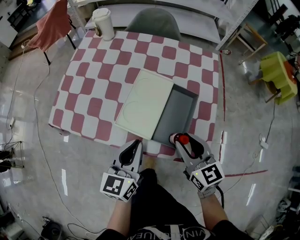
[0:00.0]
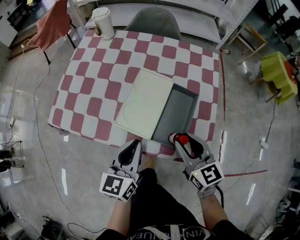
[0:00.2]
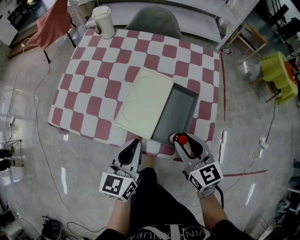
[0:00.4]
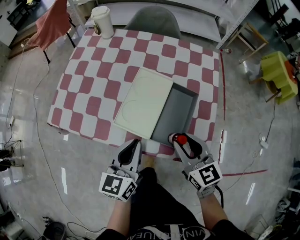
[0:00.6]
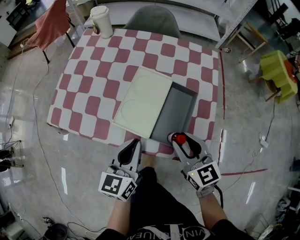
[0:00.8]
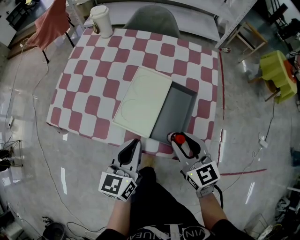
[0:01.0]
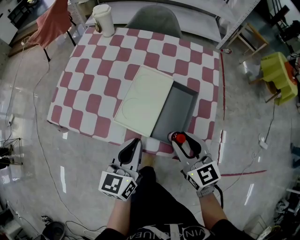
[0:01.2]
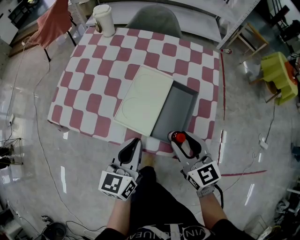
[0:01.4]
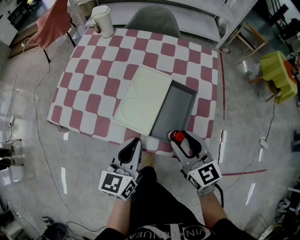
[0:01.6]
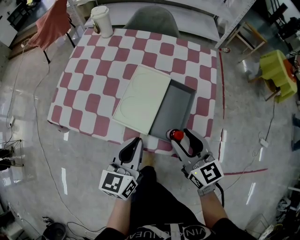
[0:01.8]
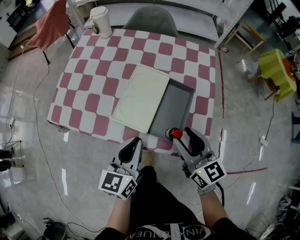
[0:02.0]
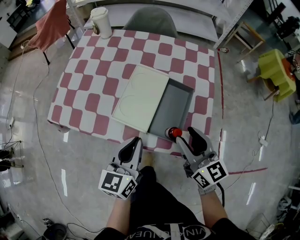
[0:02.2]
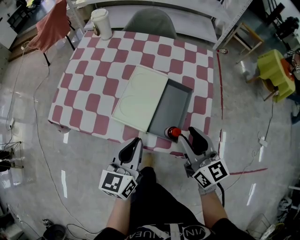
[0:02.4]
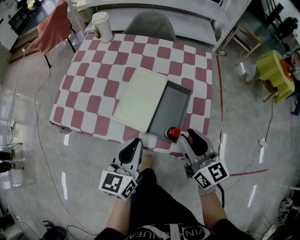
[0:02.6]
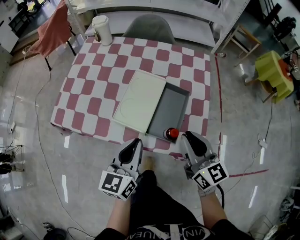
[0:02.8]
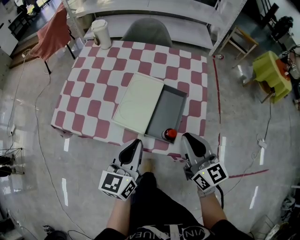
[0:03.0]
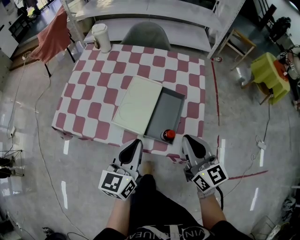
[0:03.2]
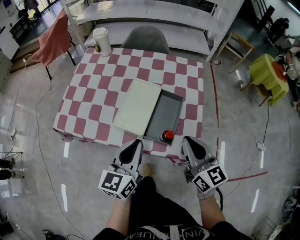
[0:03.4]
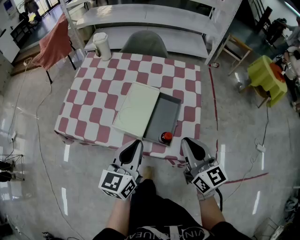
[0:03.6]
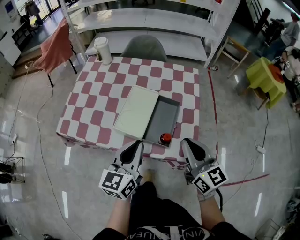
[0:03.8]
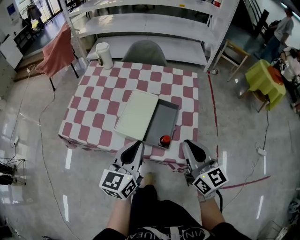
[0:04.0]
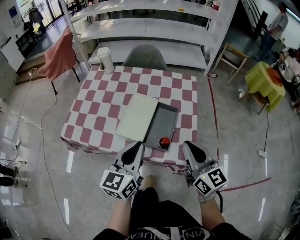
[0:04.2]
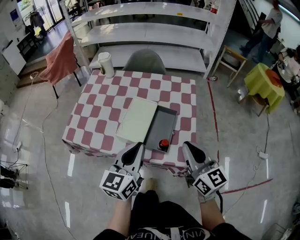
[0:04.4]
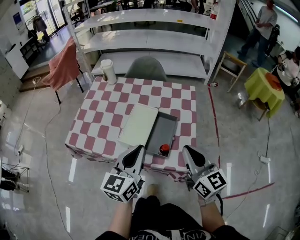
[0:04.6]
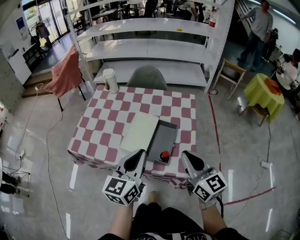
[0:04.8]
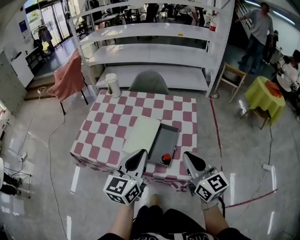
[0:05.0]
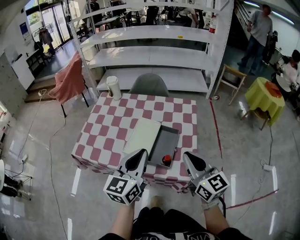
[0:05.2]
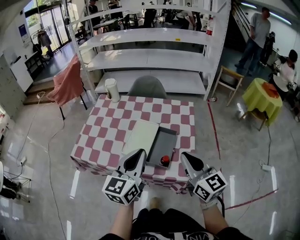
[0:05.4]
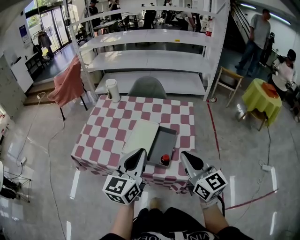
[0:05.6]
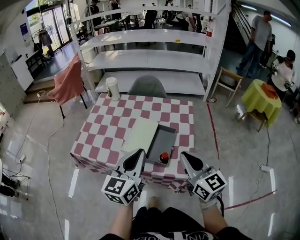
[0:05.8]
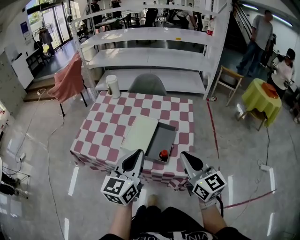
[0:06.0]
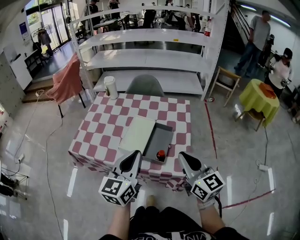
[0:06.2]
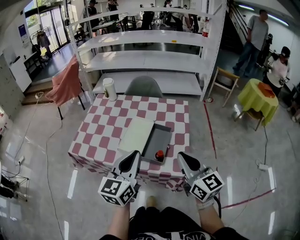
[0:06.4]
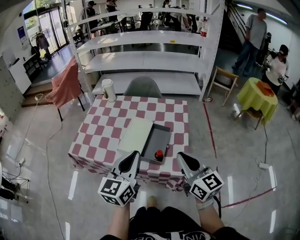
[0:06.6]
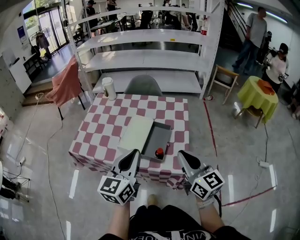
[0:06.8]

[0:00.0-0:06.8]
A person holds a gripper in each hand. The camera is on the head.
0:00.0 to 0:01.4: Both grippers stay about where they are.
0:01.4 to 0:02.8: The right gripper moves upward, some 5 cm, and closes its fingers.
0:02.8 to 0:04.0: Both grippers travel together upward, roughly 5 cm.
0:04.0 to 0:05.4: The right gripper heads upward, covering some 5 cm; the left gripper shifts approximately 10 cm upward.
0:05.4 to 0:06.8: There are only small adjustments of the grippers.

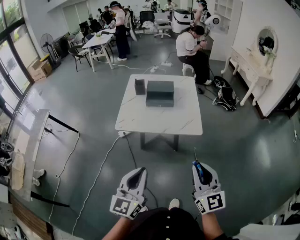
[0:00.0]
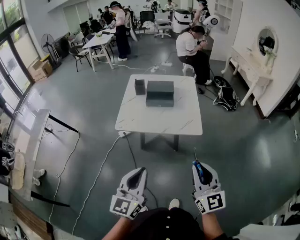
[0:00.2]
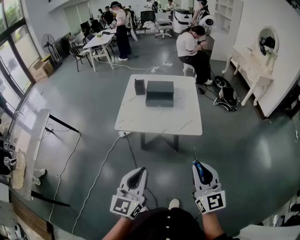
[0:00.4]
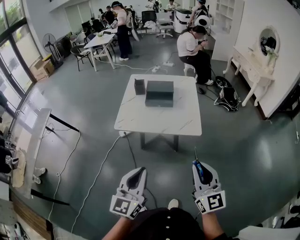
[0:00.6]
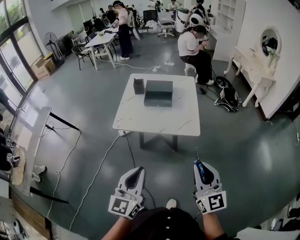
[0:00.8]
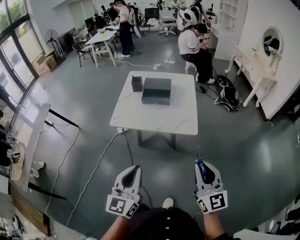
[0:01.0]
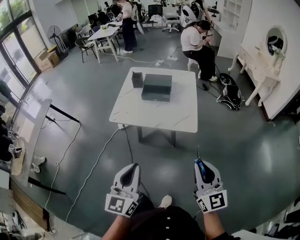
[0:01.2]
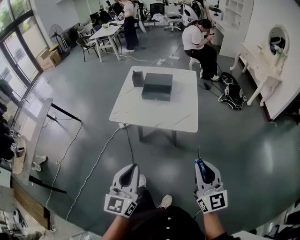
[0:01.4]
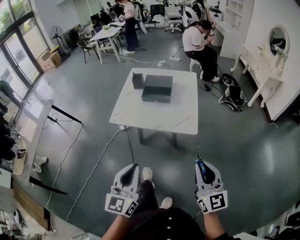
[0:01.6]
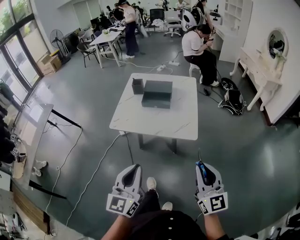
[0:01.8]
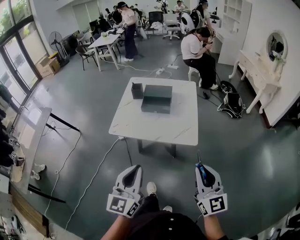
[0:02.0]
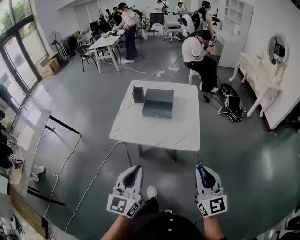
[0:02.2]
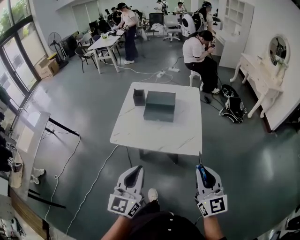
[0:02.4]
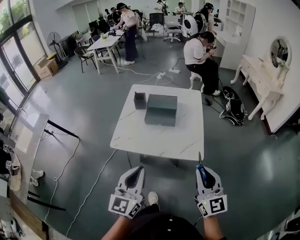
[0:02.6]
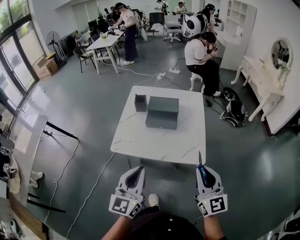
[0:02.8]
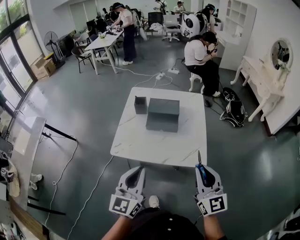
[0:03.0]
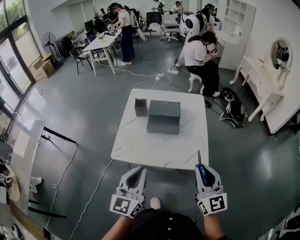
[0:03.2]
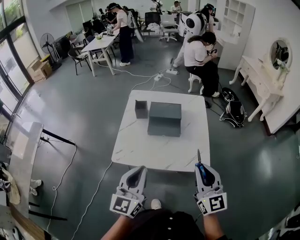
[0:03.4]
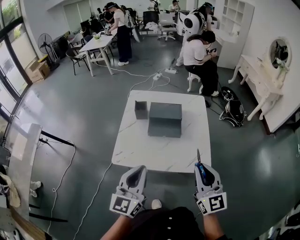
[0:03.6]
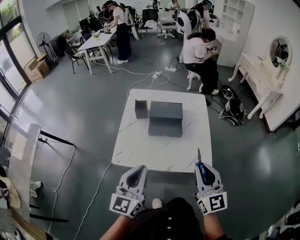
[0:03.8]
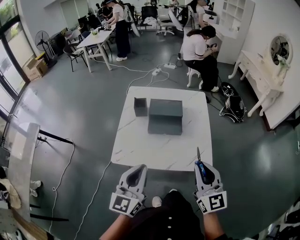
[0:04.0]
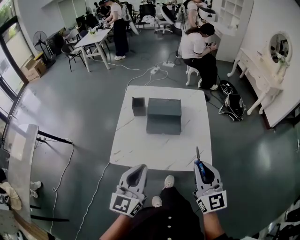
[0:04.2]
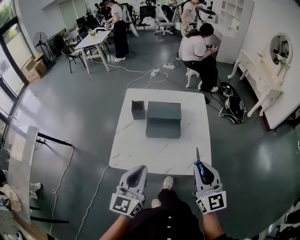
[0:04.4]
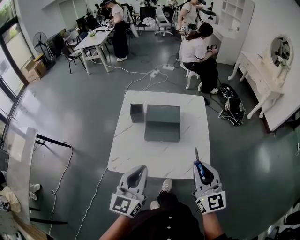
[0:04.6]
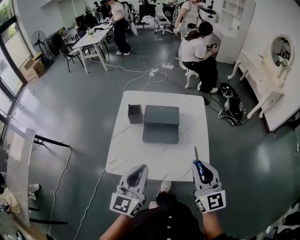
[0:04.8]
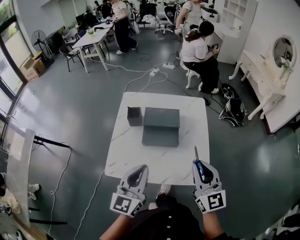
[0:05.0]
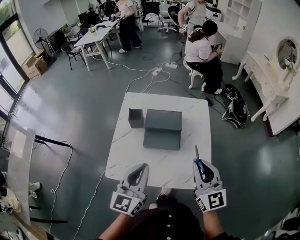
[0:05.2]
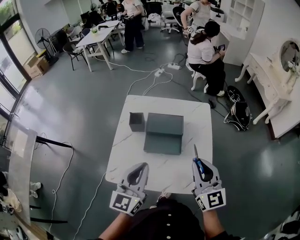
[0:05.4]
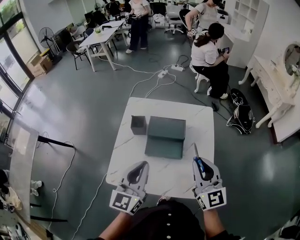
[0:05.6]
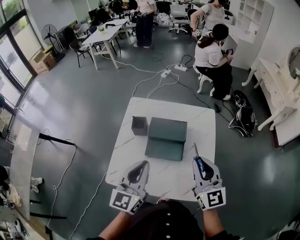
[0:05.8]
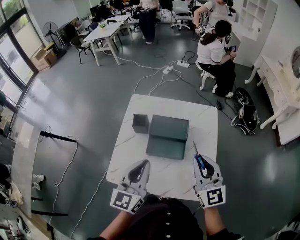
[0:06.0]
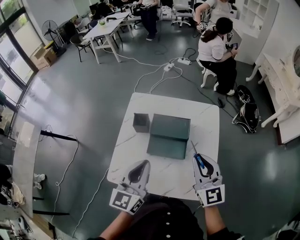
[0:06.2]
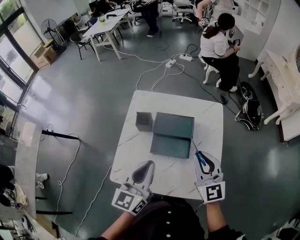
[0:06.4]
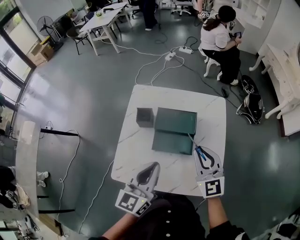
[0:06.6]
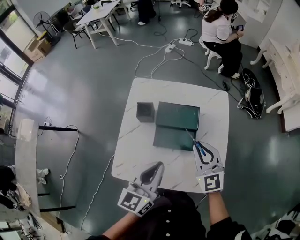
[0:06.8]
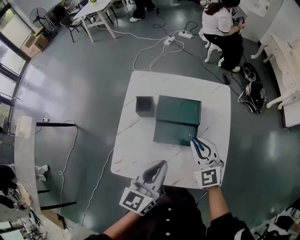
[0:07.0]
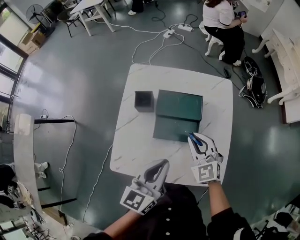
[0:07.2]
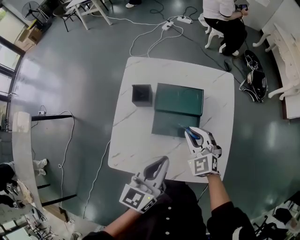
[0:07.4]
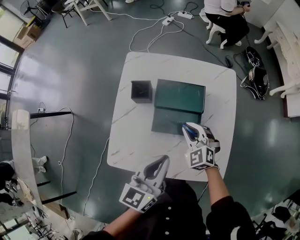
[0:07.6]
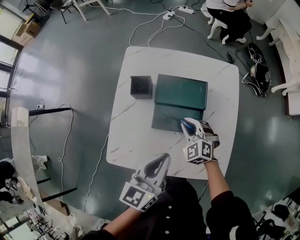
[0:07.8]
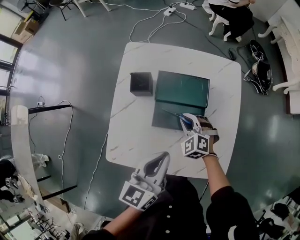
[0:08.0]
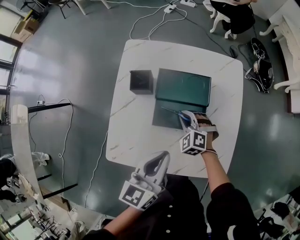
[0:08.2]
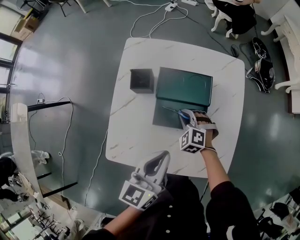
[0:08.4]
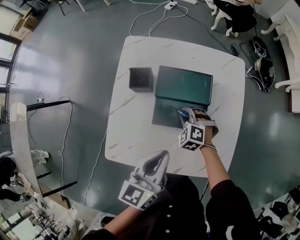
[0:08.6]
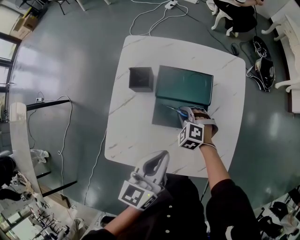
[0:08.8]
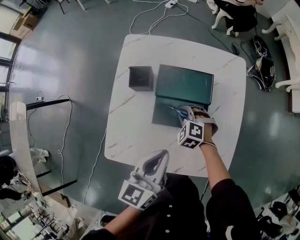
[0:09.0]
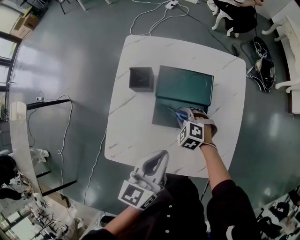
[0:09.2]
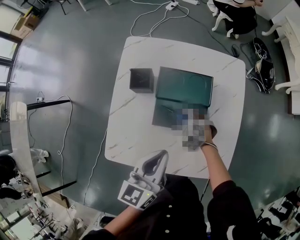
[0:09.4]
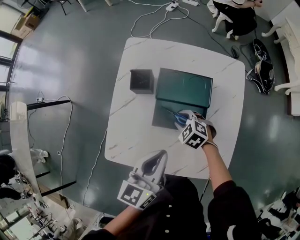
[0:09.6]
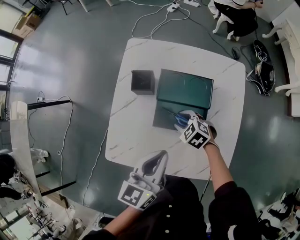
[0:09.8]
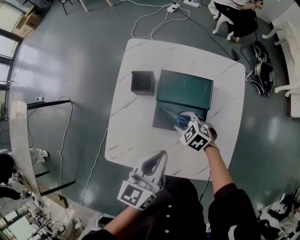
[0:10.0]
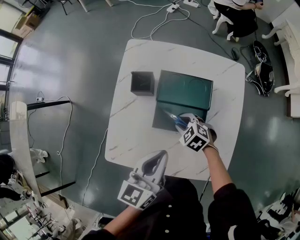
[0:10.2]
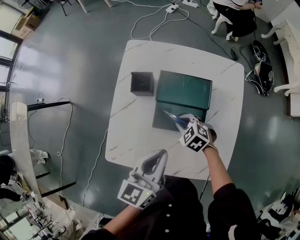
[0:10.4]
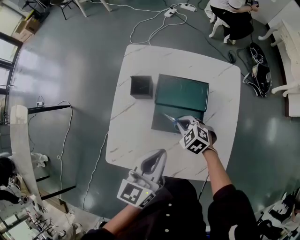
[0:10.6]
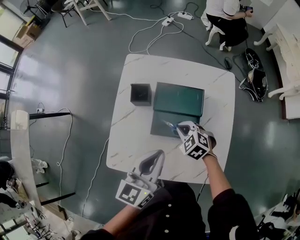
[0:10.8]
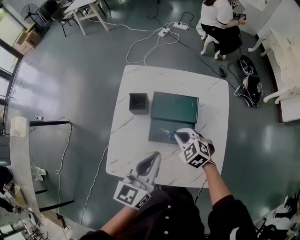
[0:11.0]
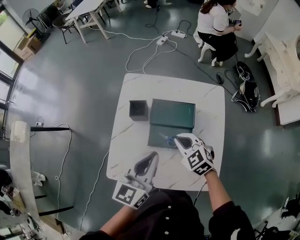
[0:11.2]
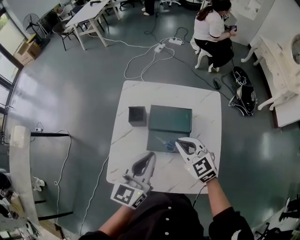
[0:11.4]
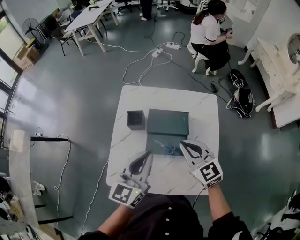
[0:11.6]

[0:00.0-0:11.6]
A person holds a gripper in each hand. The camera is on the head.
0:00.0 to 0:01.4: Both grippers travel together to the right, about 10 cm.
0:01.4 to 0:02.8: The grippers both shift forward by roughly 20 cm.
0:02.8 to 0:04.4: The right gripper travels forward and to the left by approximately 15 cm, while the left gripper travels forward by some 15 cm.
0:04.4 to 0:05.8: The two grippers go some 20 cm forward.
0:05.8 to 0:07.2: The right gripper goes approximately 20 cm downward, forward and to the left, and rotates about 30 degrees; the left gripper heads downward, covering approximately 10 cm.
0:07.2 to 0:08.8: The right gripper travels downward by roughly 20 cm, and tips its fingers downward by approximately 30 degrees. Meanwhile the left gripper moves downward, approximately 5 cm.
0:08.8 to 0:10.2: The right gripper swivels approximately 30 degrees, and opens its fingers.
0:10.2 to 0:11.6: The right gripper heads upward, covering about 30 cm, angles its fingers upward, by approximately 40 degrees, and closes its fingers; the left gripper heads upward, covering some 15 cm.

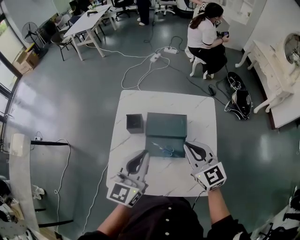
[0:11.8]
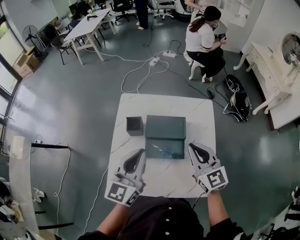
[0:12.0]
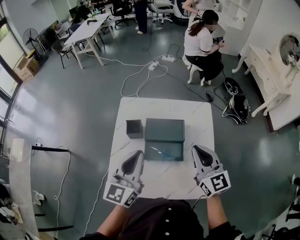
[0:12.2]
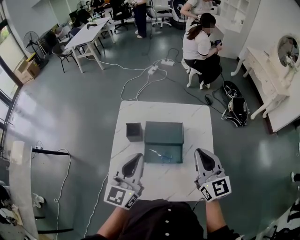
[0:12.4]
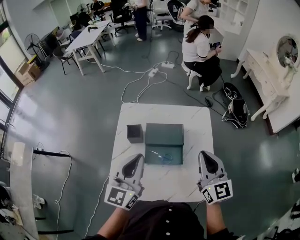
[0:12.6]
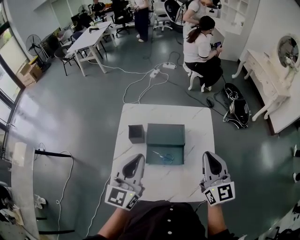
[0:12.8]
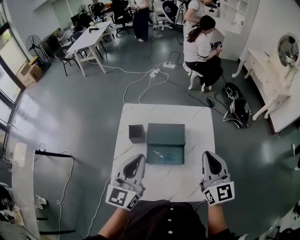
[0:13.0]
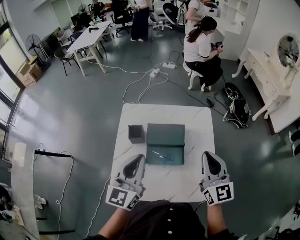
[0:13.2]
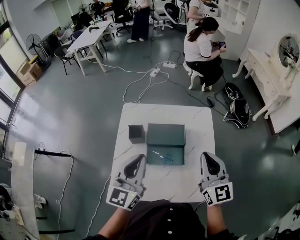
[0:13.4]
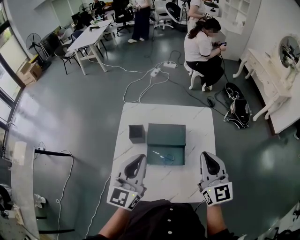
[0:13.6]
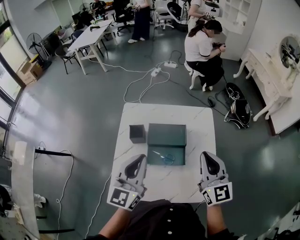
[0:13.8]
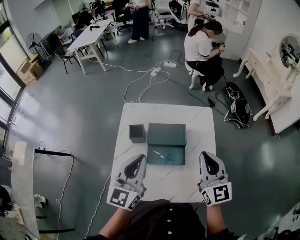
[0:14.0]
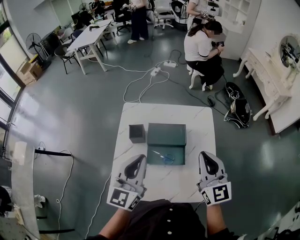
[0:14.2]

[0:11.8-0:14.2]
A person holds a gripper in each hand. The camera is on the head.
0:11.8 to 0:13.0: The right gripper shifts approximately 10 cm to the right, upward and backward, and changes its angle by some 20 degrees.
0:13.0 to 0:14.2: There are only small adjustments of the grippers.

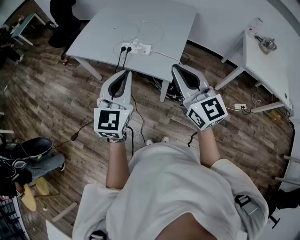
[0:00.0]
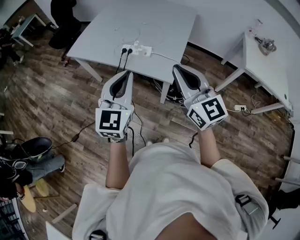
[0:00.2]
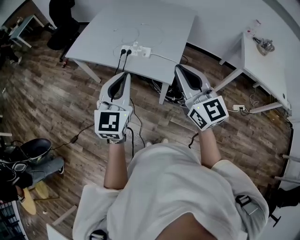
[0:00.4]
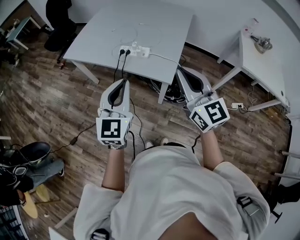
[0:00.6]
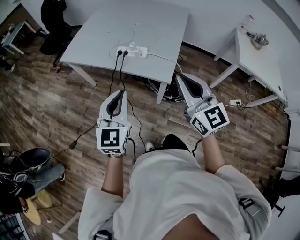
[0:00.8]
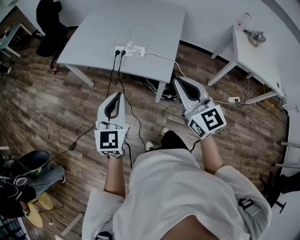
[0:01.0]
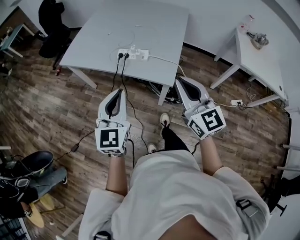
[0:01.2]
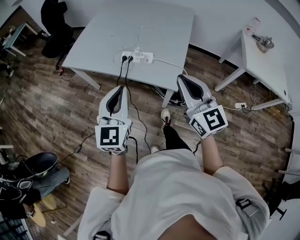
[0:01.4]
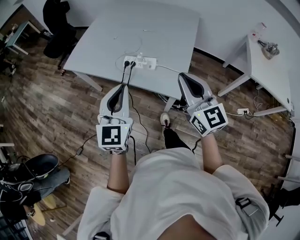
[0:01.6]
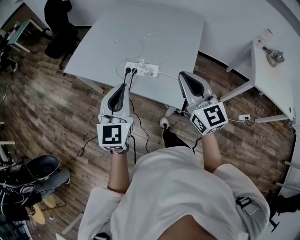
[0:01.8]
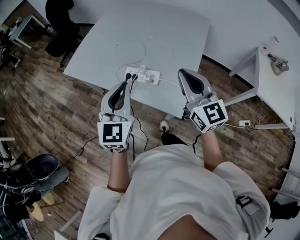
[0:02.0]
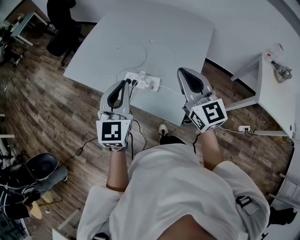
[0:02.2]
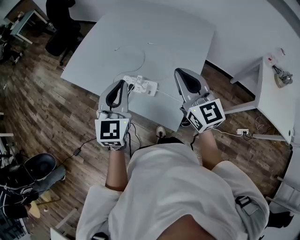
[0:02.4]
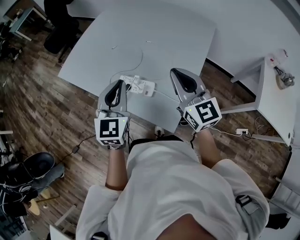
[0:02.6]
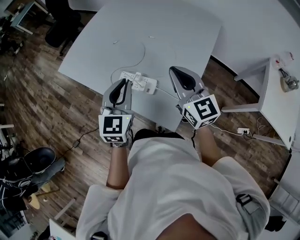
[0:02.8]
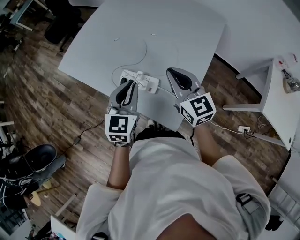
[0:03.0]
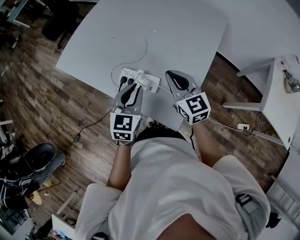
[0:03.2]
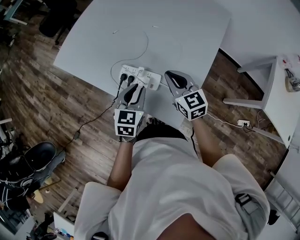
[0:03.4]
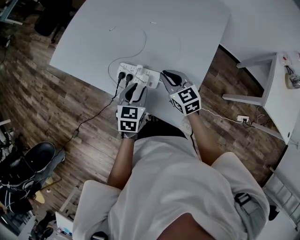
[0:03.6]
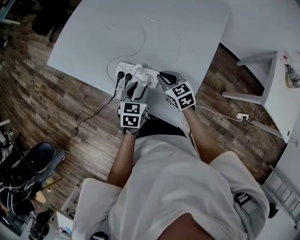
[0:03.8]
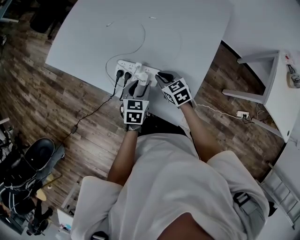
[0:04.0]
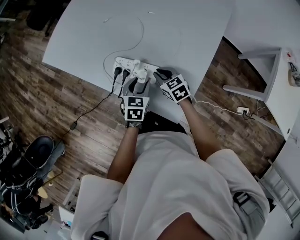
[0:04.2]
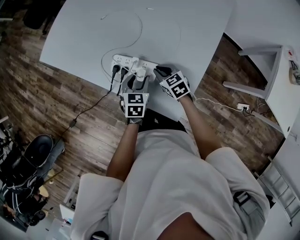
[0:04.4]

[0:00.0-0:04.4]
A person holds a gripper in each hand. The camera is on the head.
0:00.0 to 0:01.4: The right gripper ends up roughly 5 cm from where it was. The left gripper heads to the left, covering approximately 5 cm.
0:01.4 to 0:03.0: Both grippers travel together forward, about 30 cm.
0:03.0 to 0:04.4: Both grippers travel together downward, roughly 25 cm. The left gripper swivels roughly 30 degrees, and opens up. The right gripper angles its fingers downward, by approximately 40 degrees.
